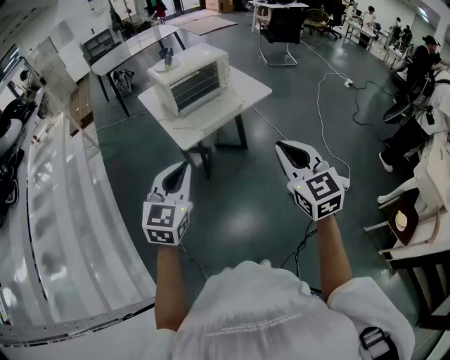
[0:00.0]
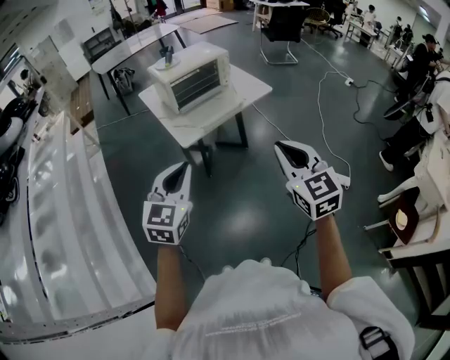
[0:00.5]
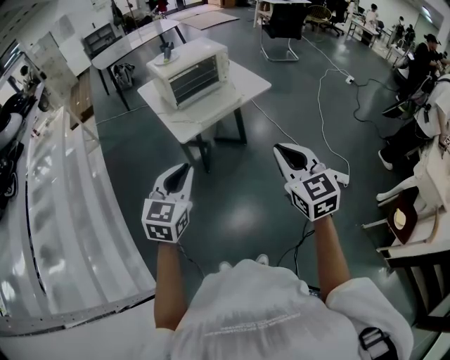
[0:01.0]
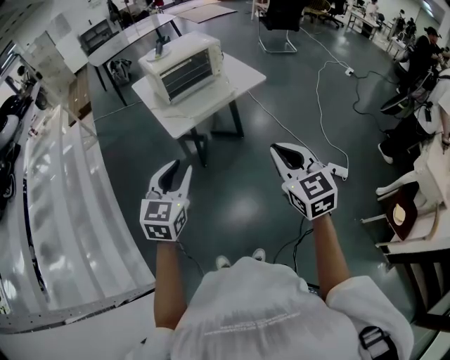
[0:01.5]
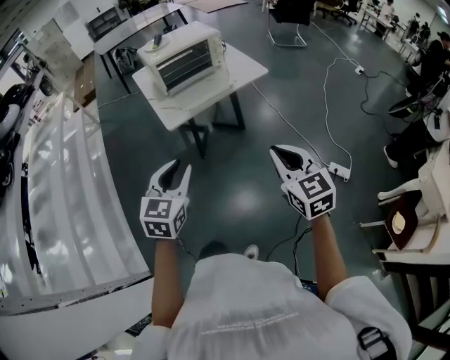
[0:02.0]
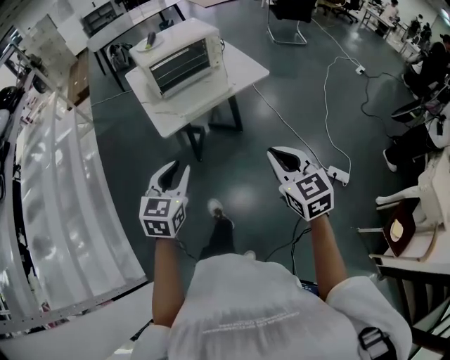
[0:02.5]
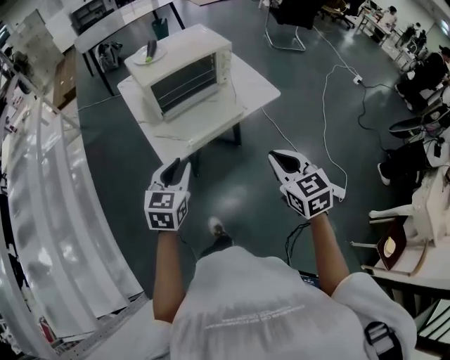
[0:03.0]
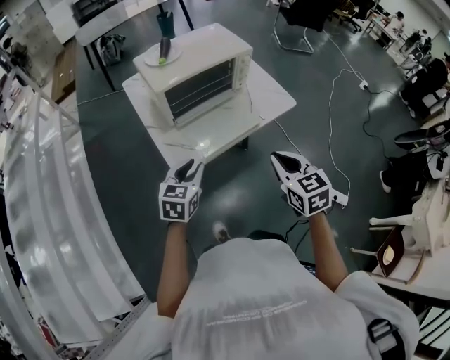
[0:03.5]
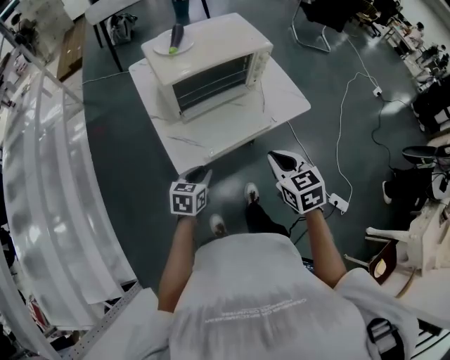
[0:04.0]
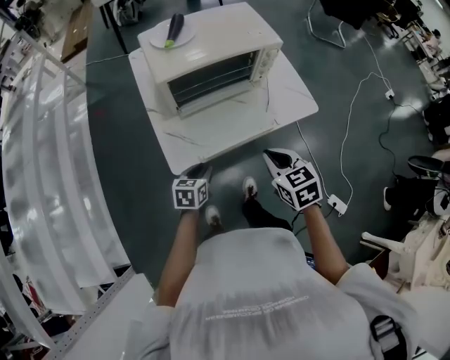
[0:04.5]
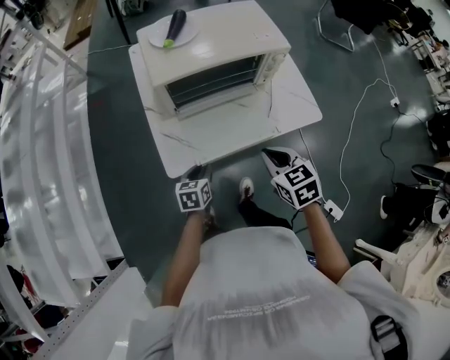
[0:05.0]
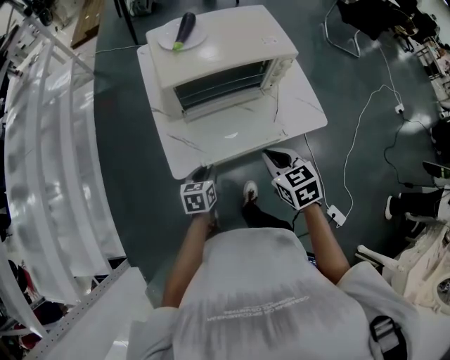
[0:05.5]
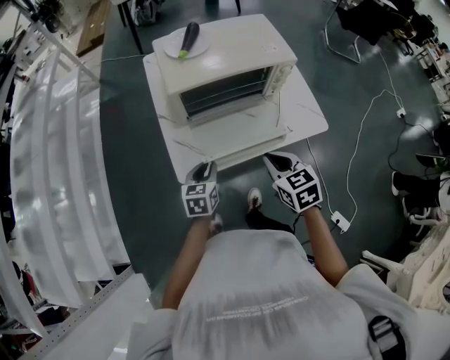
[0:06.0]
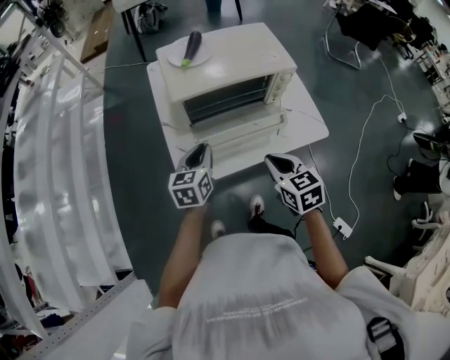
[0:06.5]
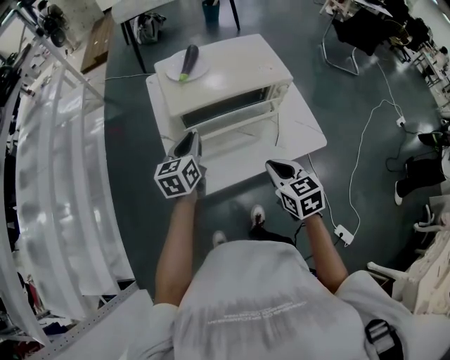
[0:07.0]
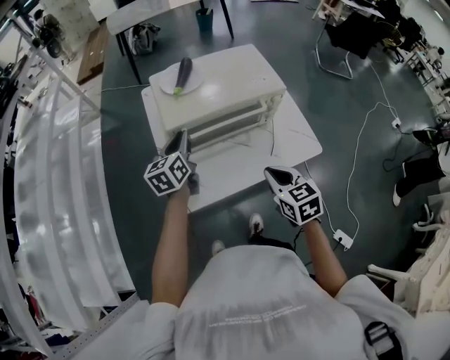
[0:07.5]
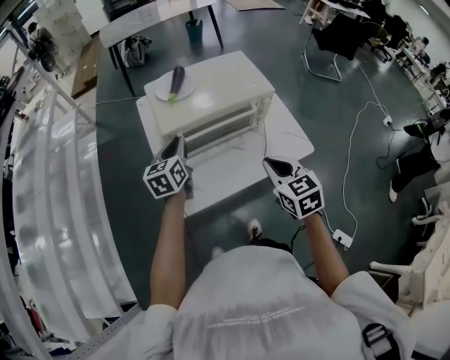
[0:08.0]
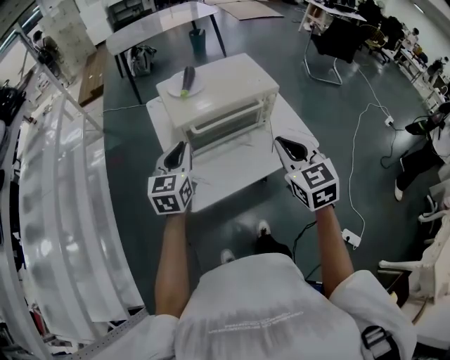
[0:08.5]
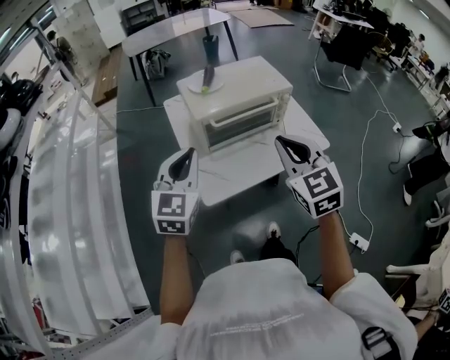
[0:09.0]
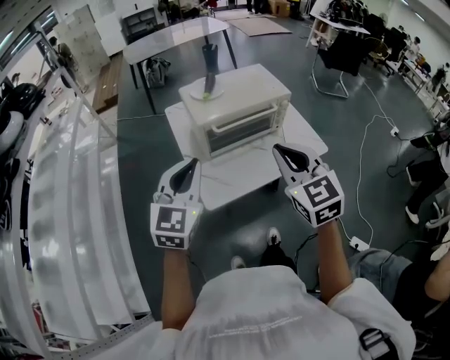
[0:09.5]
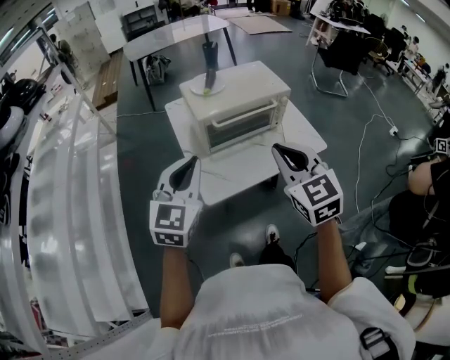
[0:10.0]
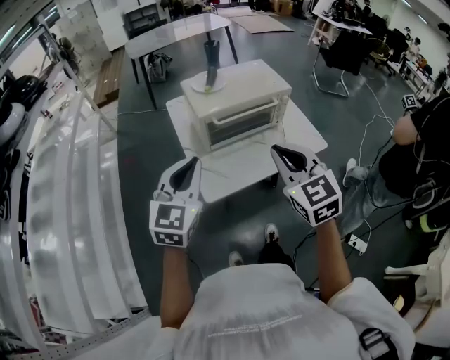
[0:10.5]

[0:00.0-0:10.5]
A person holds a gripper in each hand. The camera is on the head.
0:00.0 to 0:02.0: The two grippers go approximately 10 cm to the right and downward. The left gripper opens.
0:02.0 to 0:04.0: The left gripper travels forward and downward by roughly 40 cm, and swivels about 30 degrees; the right gripper travels forward by roughly 35 cm, and rotates about 20 degrees.
0:04.0 to 0:06.5: The right gripper heads forward, covering some 10 cm; the left gripper is displaced forward and upward by about 15 cm, and swivels some 30 degrees.
0:06.5 to 0:08.5: Both grippers travel together upward, about 15 cm. The right gripper changes its angle by some 20 degrees. The left gripper changes its angle by some 20 degrees.
0:08.5 to 0:10.5: The left gripper heads backward and upward, covering about 15 cm, while the right gripper is displaced backward and to the left by some 15 cm.

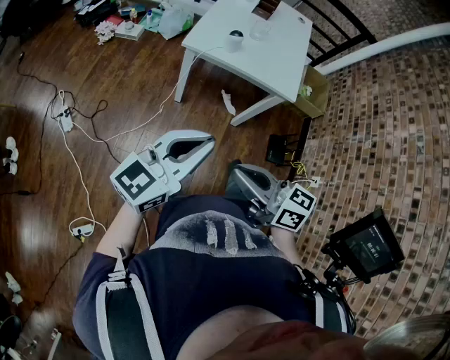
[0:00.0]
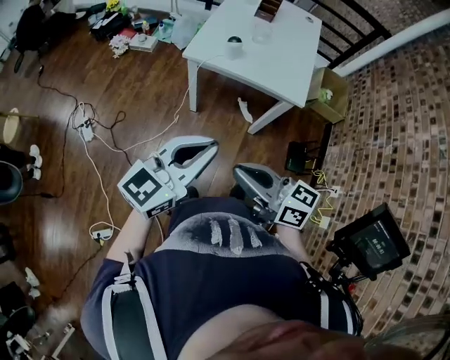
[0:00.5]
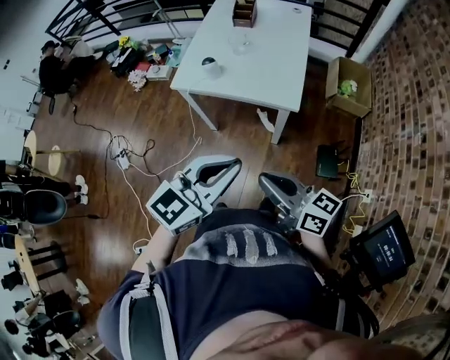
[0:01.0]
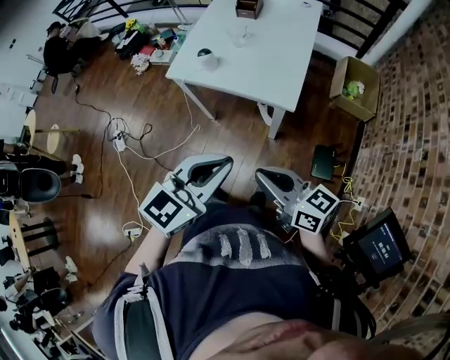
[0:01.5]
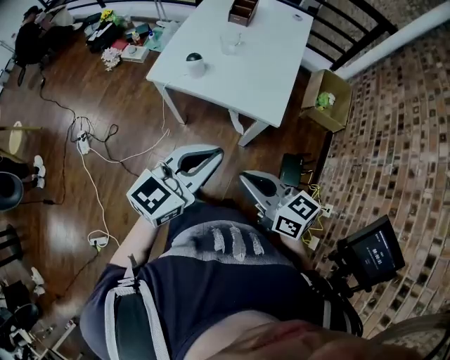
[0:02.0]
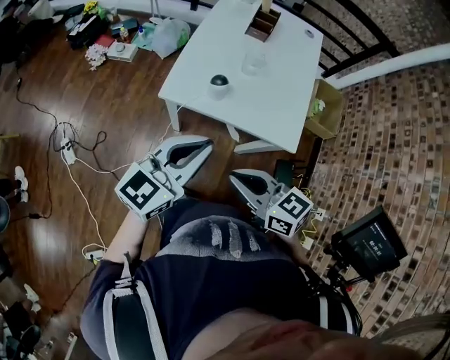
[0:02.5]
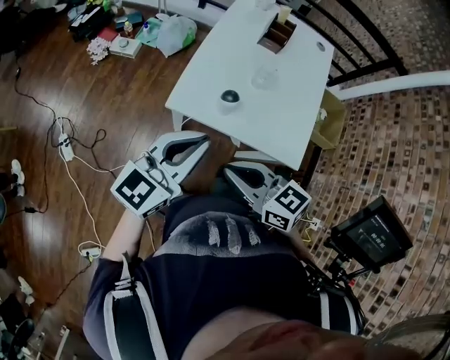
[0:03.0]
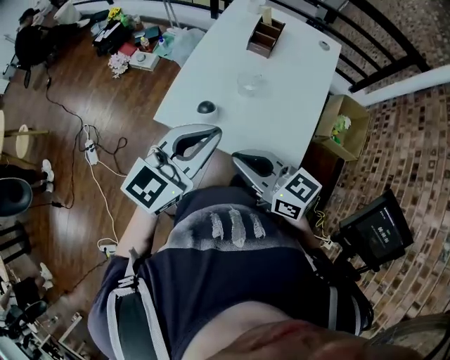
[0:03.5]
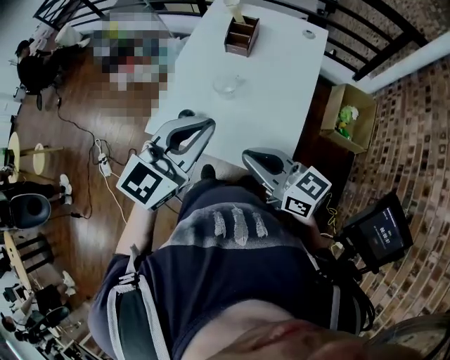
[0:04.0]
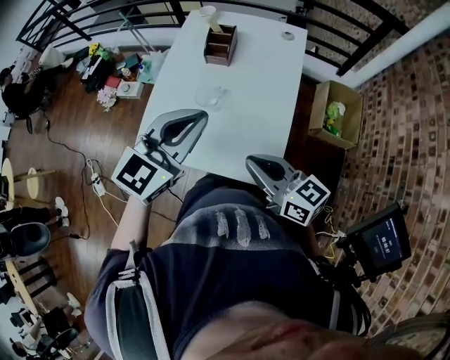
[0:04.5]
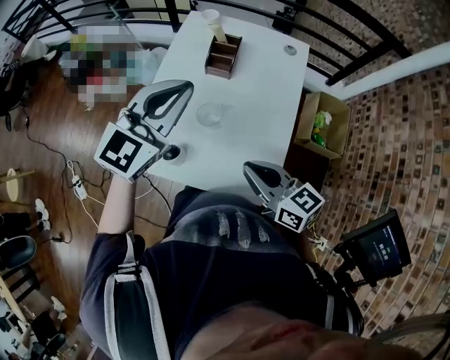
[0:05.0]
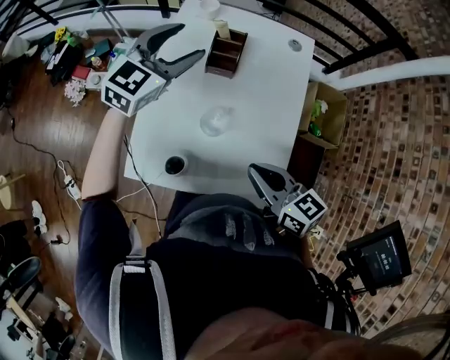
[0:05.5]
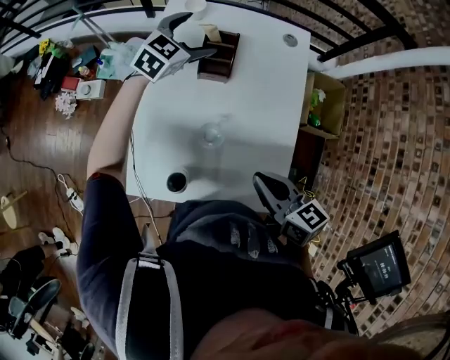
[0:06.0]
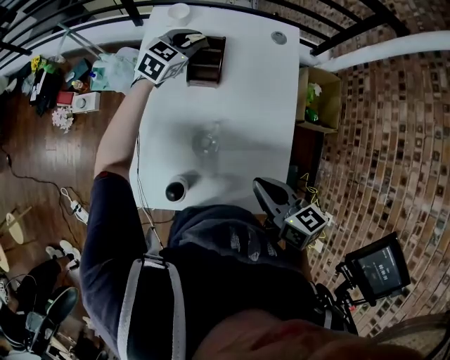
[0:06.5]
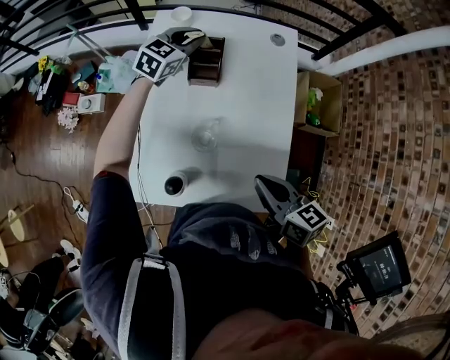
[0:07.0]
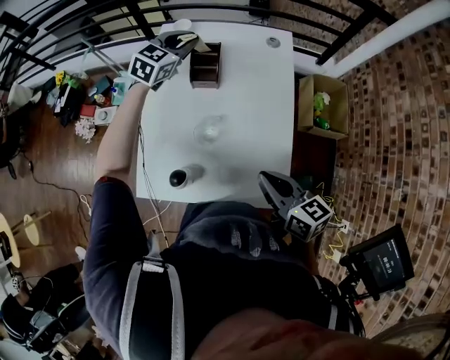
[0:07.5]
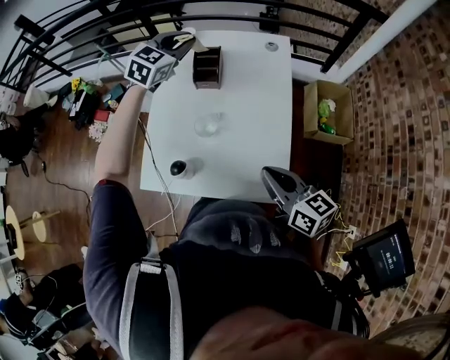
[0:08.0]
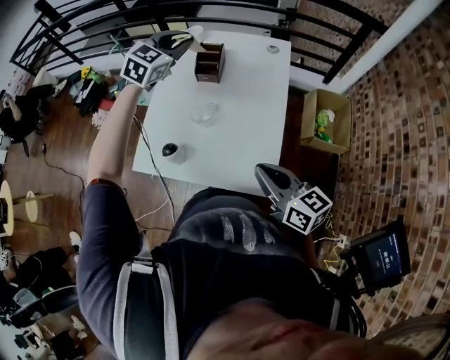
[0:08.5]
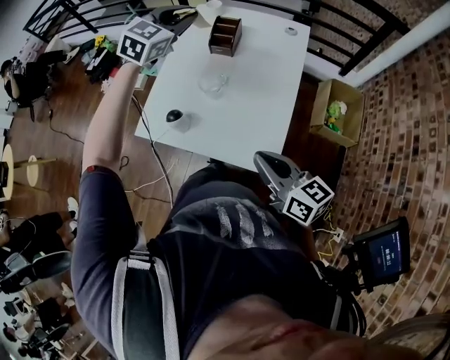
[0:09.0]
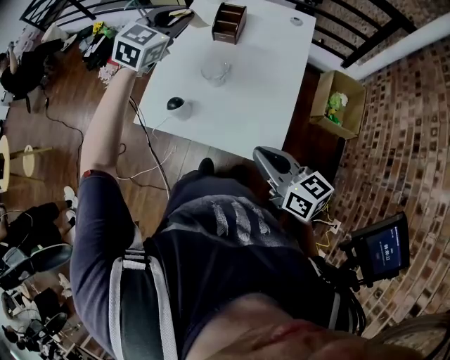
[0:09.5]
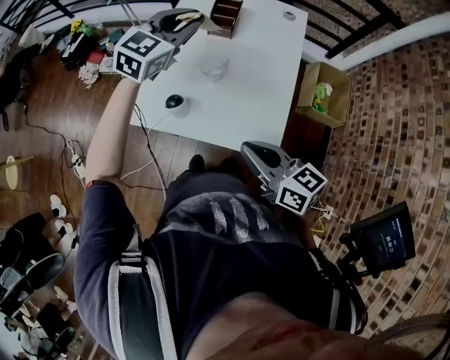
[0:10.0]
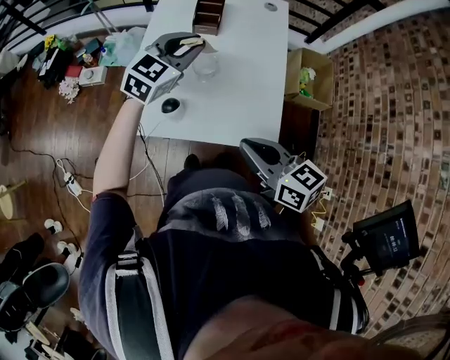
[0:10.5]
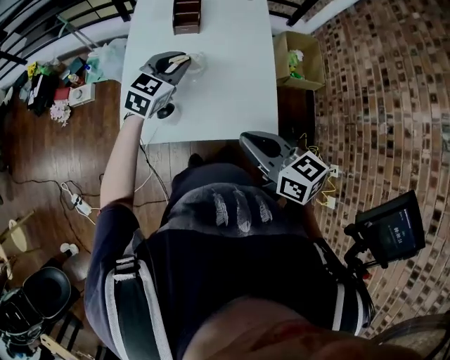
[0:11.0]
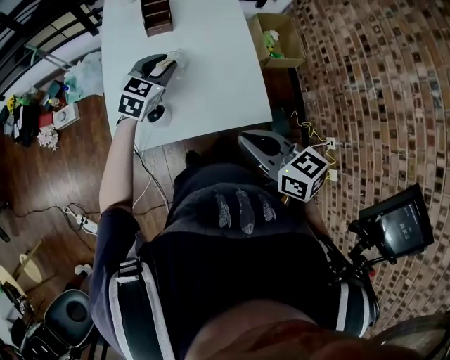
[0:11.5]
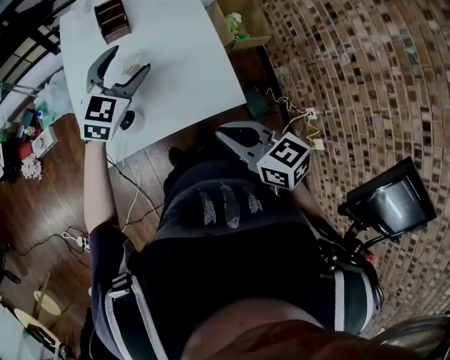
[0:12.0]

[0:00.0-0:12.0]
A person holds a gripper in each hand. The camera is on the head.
0:00.0 to 0:02.0: The grippers both shift to the right and forward by roughly 25 cm.
0:02.0 to 0:04.0: Both grippers travel together forward, roughly 25 cm.
0:04.0 to 0:06.0: The left gripper travels forward by roughly 40 cm, rotates approximately 20 degrees, and opens. The right gripper travels forward and downward by approximately 15 cm, and swivels some 30 degrees.
0:06.0 to 0:08.0: The left gripper heads upward and backward, covering some 15 cm, and closes, while the right gripper travels to the right and backward by approximately 10 cm.
0:08.0 to 0:10.0: The left gripper heads backward, covering roughly 15 cm; the right gripper travels to the left and backward by some 10 cm.
0:10.0 to 0:12.0: The left gripper is displaced downward and backward by about 10 cm, and opens its fingers; the right gripper swivels approximately 30 degrees.

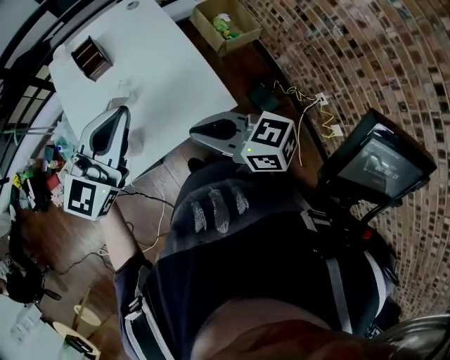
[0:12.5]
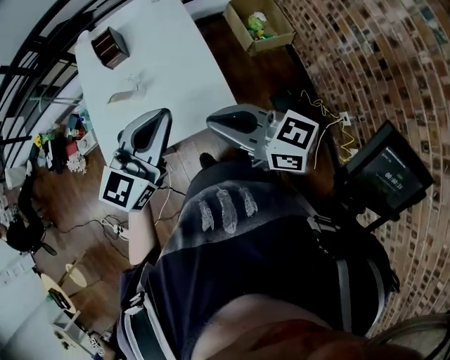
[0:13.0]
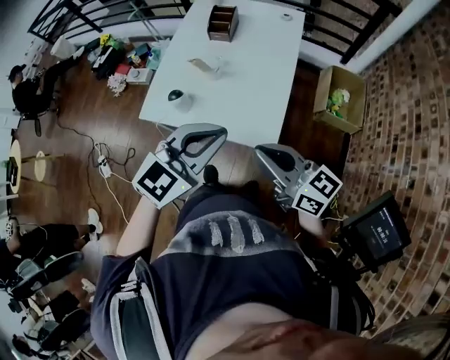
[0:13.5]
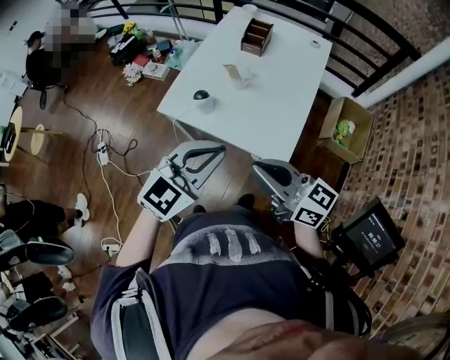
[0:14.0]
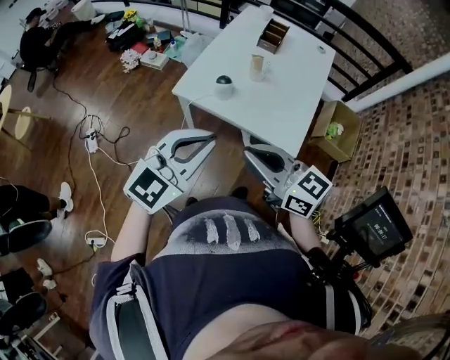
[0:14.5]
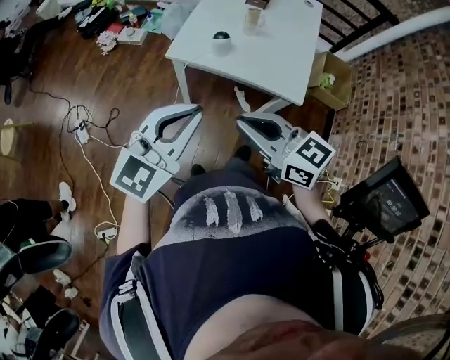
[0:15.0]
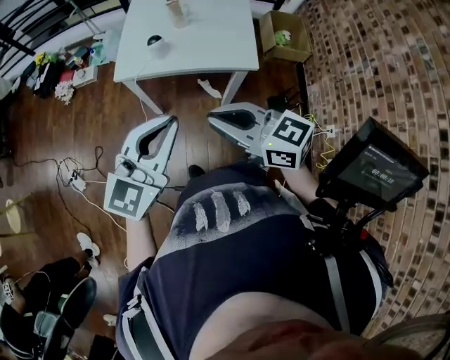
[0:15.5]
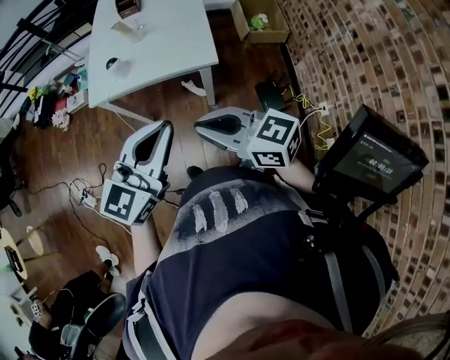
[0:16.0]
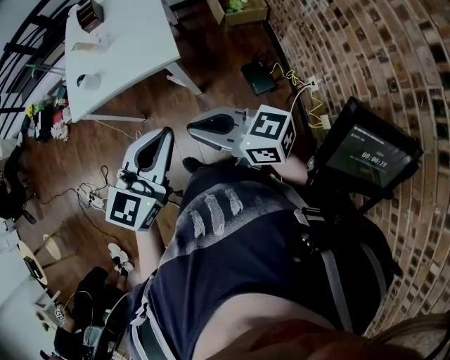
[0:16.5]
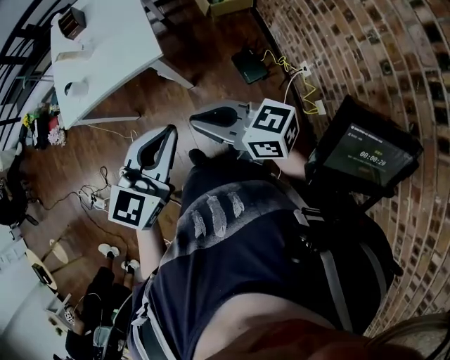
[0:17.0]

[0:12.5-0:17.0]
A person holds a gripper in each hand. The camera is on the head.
0:12.5 to 0:14.5: The left gripper ends up about 25 cm from where it was, and changes its angle by roughly 40 degrees. Meanwhile the right gripper ends up approximately 15 cm from where it was, and changes its angle by some 40 degrees.
0:14.5 to 0:17.0: The right gripper ends up about 30 cm from where it was, and swivels roughly 30 degrees, while the left gripper ends up some 30 cm from where it was, and turns by about 30 degrees.
